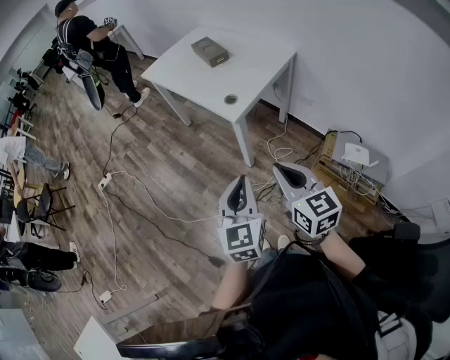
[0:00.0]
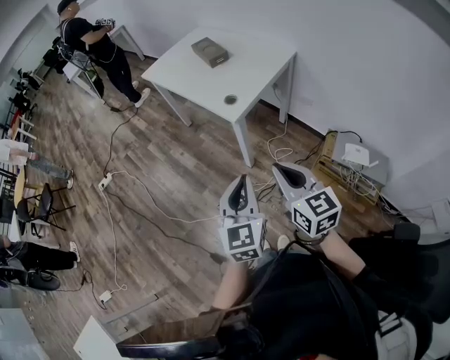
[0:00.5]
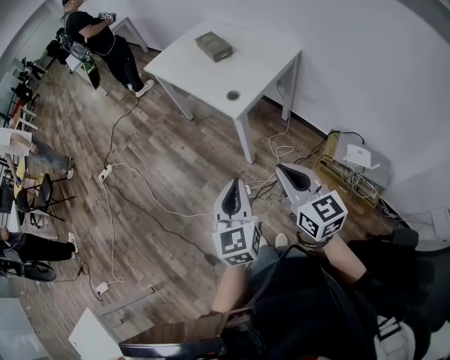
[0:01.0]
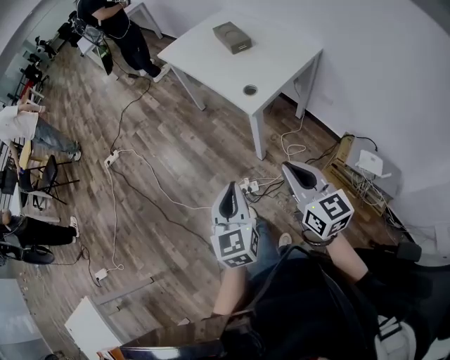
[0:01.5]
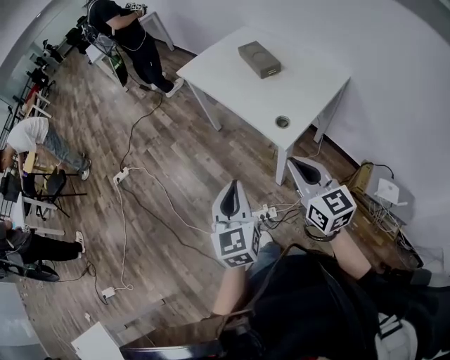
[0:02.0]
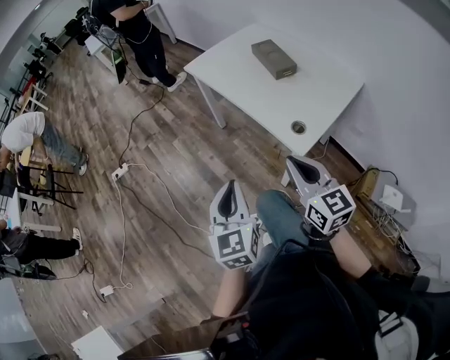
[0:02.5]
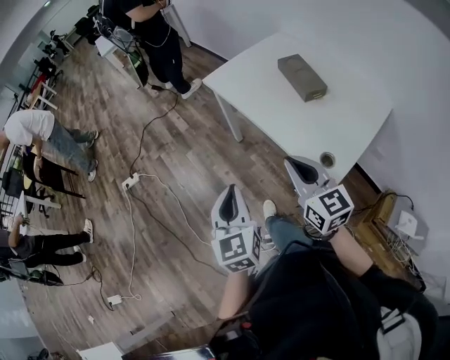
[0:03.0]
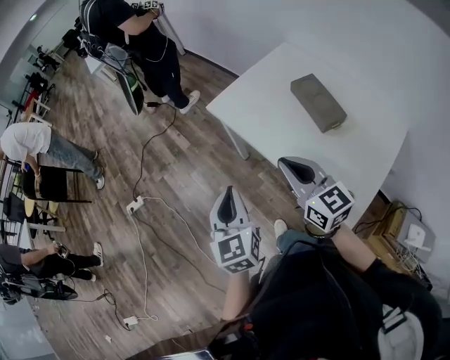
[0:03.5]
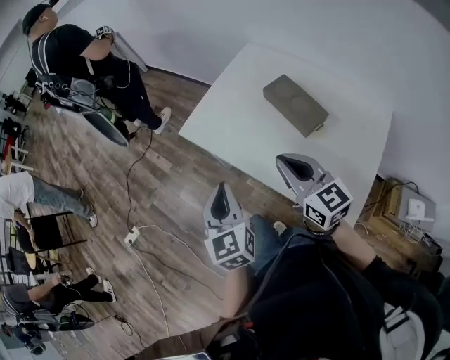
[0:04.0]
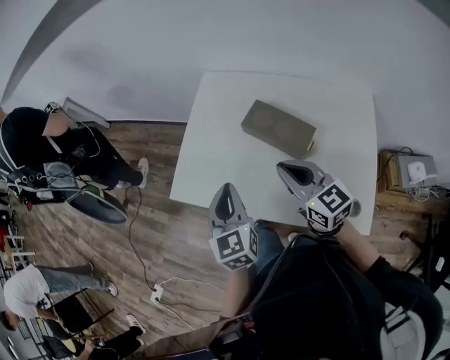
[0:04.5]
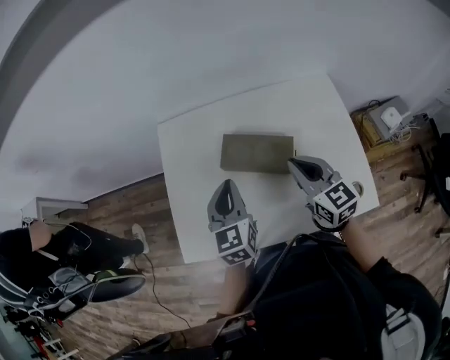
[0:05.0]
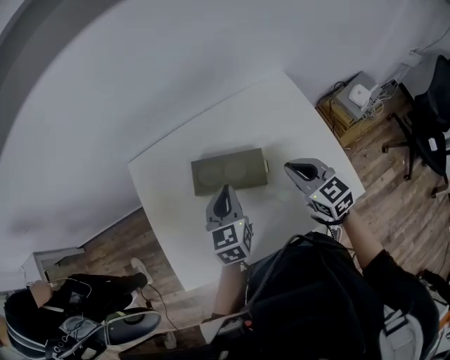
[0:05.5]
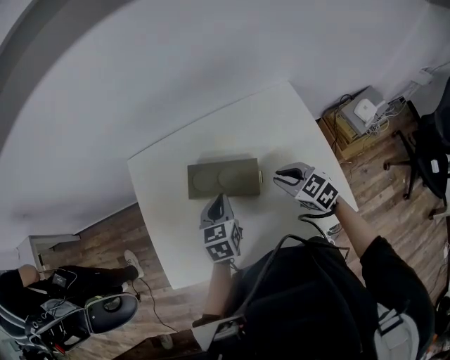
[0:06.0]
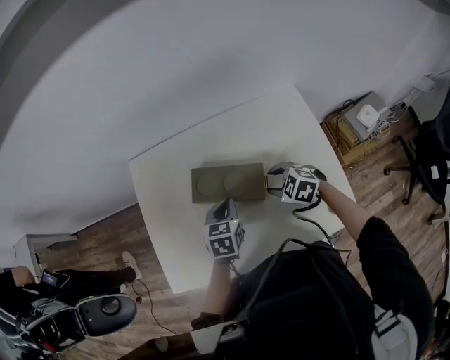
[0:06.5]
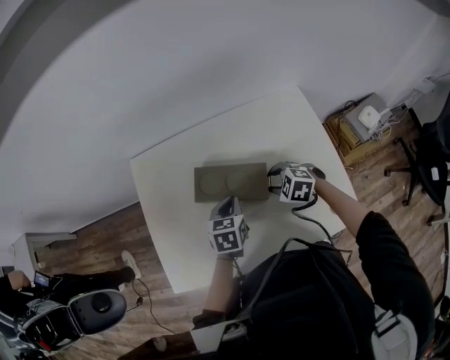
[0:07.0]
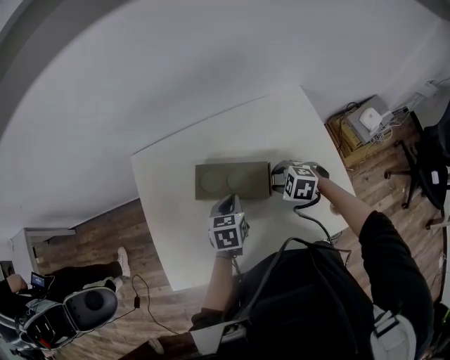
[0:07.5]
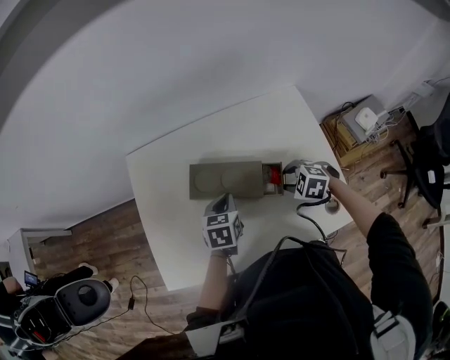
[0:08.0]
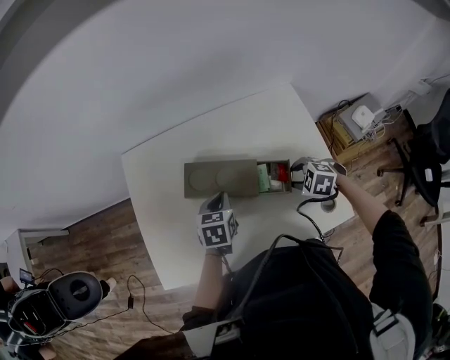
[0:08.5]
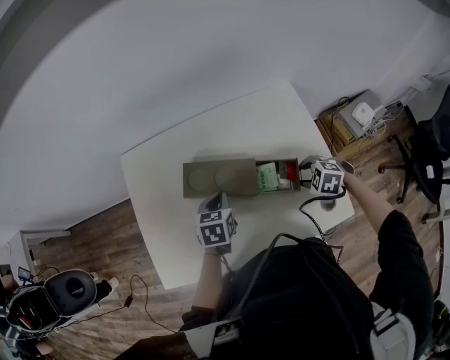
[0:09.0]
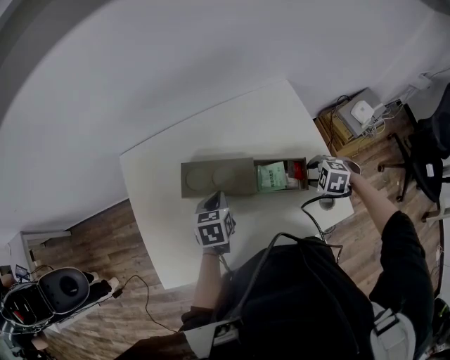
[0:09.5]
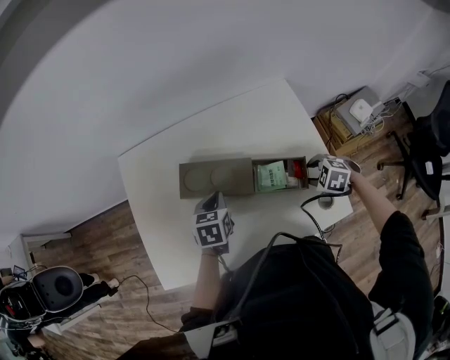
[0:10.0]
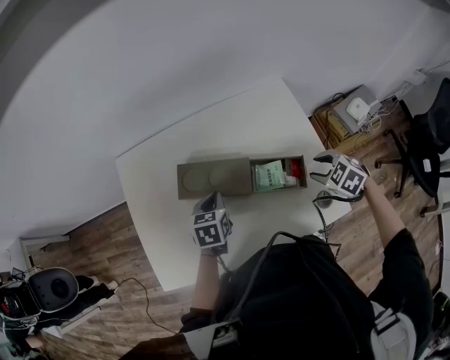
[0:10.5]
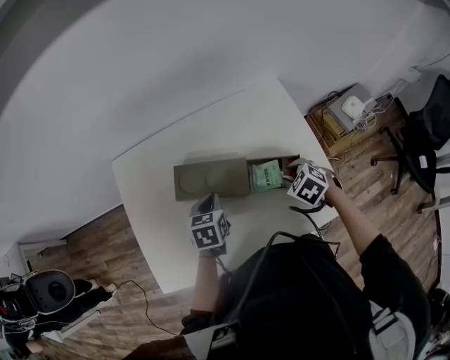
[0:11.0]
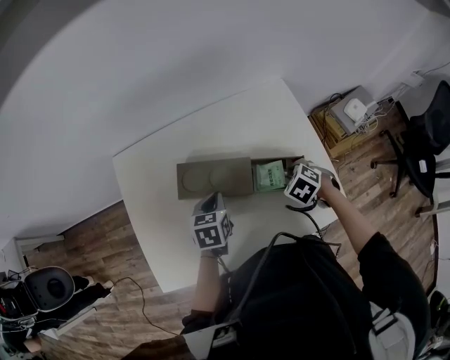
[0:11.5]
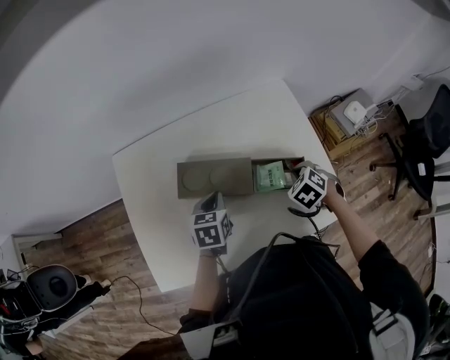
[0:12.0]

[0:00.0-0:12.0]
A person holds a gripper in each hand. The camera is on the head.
0:00.0 to 0:02.0: The right gripper is displaced forward by roughly 20 cm. The left gripper shifts about 25 cm forward and to the left.
0:02.0 to 0:04.0: The pair of grippers is taken forward, some 50 cm.
0:04.0 to 0:06.0: The left gripper changes place by roughly 40 cm, and changes its angle by approximately 70 degrees. The right gripper moves some 30 cm, and tips its fingers downward by about 30 degrees.
0:06.0 to 0:08.0: Both grippers travel together downward, approximately 5 cm. The right gripper turns by approximately 40 degrees, and opens up.
0:08.0 to 0:10.0: The right gripper ends up about 10 cm from where it was.
0:10.0 to 0:12.0: The right gripper changes place by about 5 cm, swivels roughly 30 degrees, and closes.

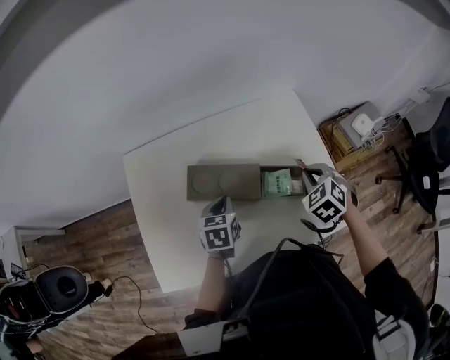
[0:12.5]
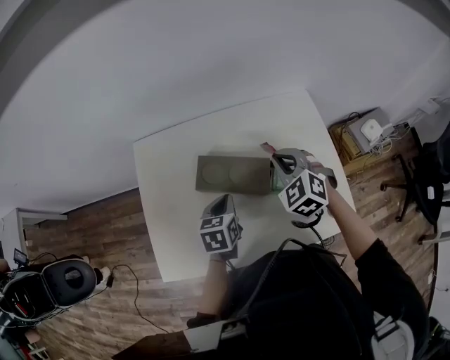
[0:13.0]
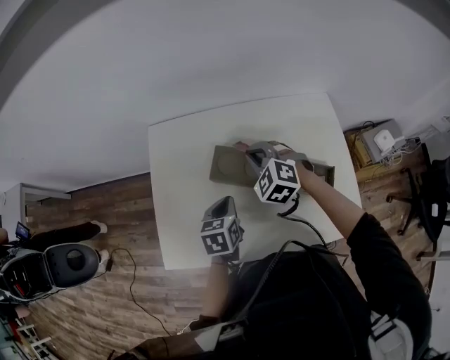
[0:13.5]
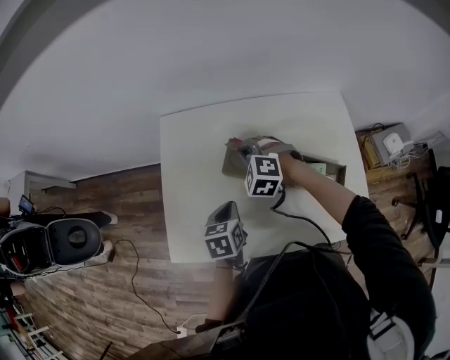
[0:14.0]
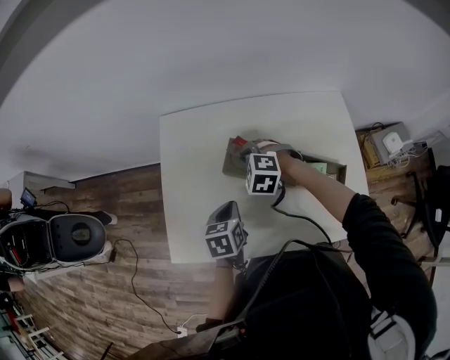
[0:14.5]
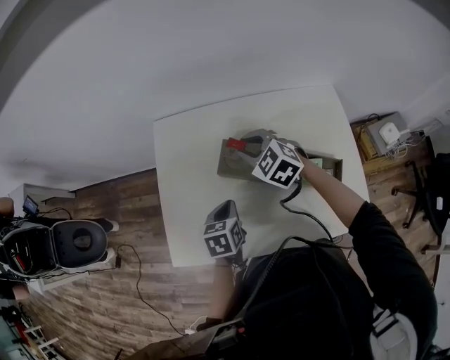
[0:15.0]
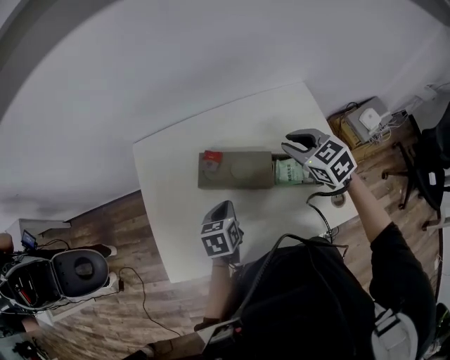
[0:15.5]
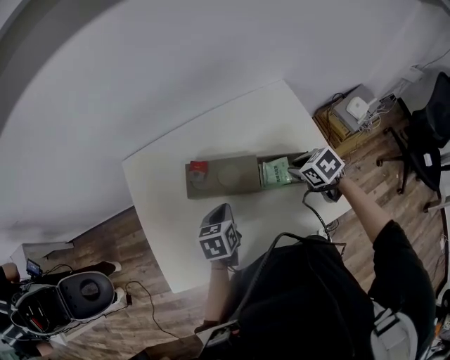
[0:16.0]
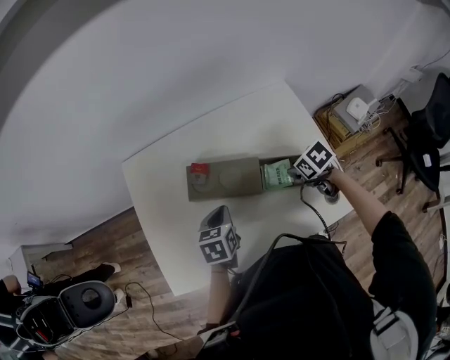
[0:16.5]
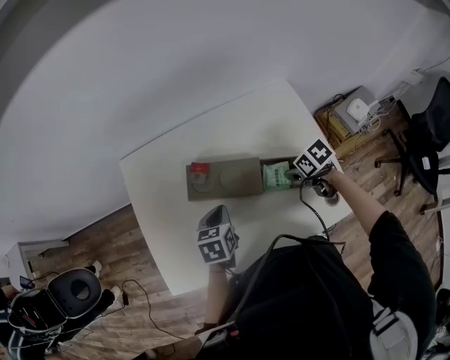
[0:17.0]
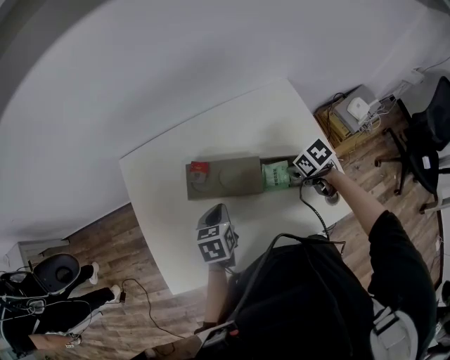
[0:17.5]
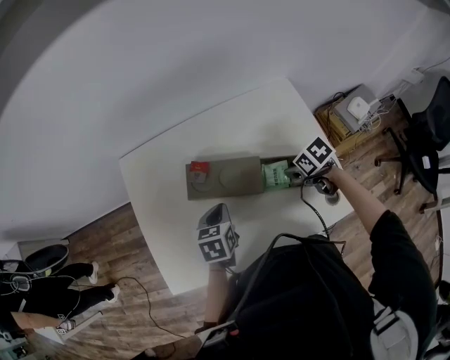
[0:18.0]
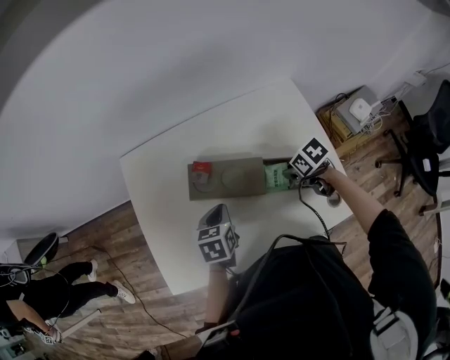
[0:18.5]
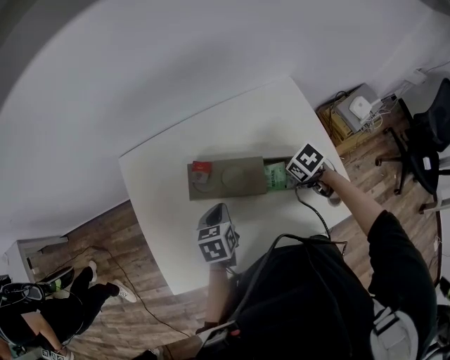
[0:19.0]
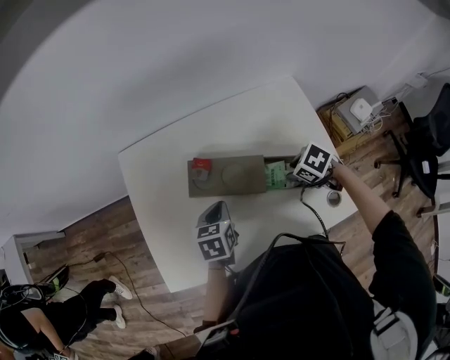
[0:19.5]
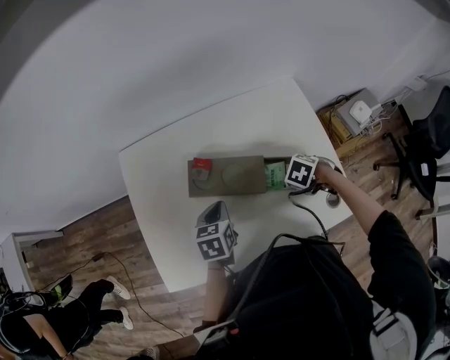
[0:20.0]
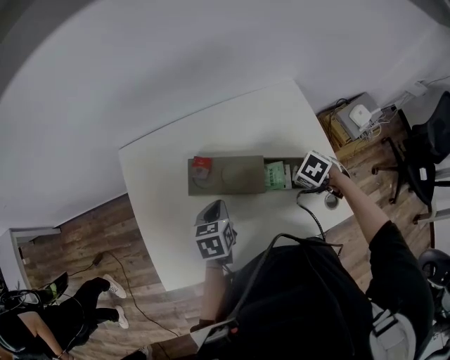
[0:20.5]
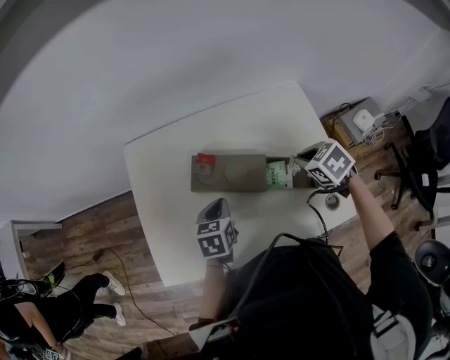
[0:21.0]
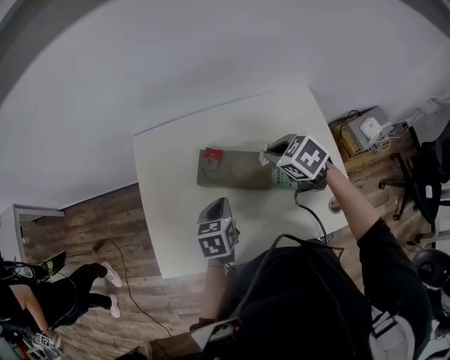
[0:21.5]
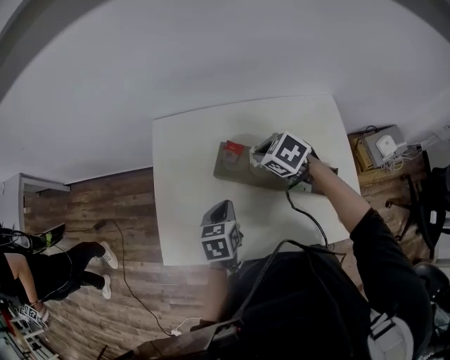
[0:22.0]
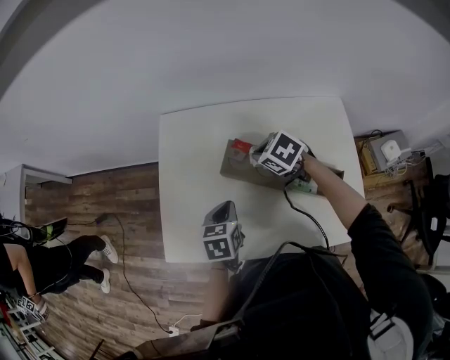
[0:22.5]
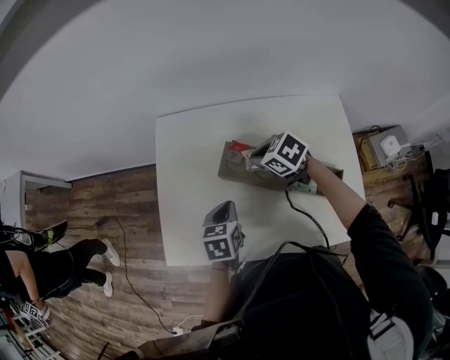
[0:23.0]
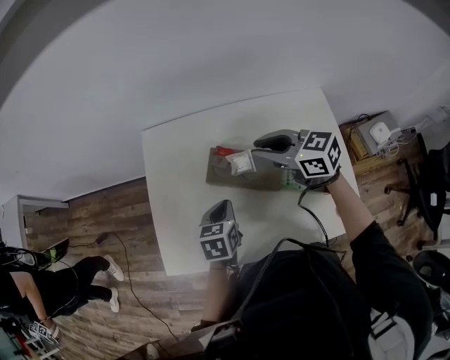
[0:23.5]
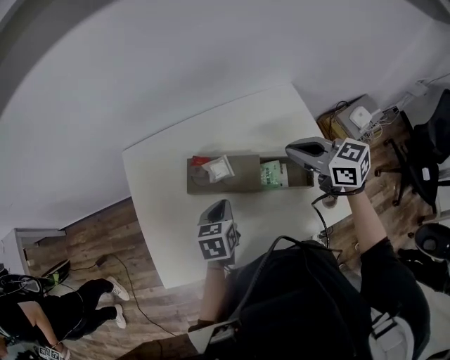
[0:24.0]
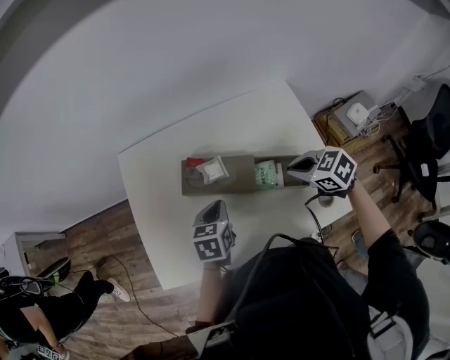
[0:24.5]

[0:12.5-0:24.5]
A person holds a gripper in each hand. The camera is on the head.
0:12.5 to 0:14.5: The left gripper changes place by about 15 cm. The right gripper ends up about 35 cm from where it was, and swivels approximately 50 degrees.
0:14.5 to 0:16.5: The right gripper shifts about 25 cm to the right, and twists about 70 degrees clockwise, seen from behind. The left gripper is displaced to the right by some 10 cm.
0:16.5 to 0:18.5: The grippers move only a little.
0:18.5 to 0:20.5: The right gripper turns by roughly 30 degrees, and closes.
0:20.5 to 0:22.5: The left gripper shifts by some 10 cm, while the right gripper ends up some 25 cm from where it was, and changes its angle by roughly 30 degrees.
0:22.5 to 0:24.5: The right gripper travels to the right and backward by roughly 25 cm, while the left gripper heads to the right, covering some 10 cm.

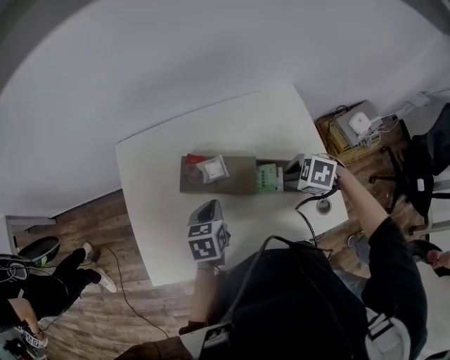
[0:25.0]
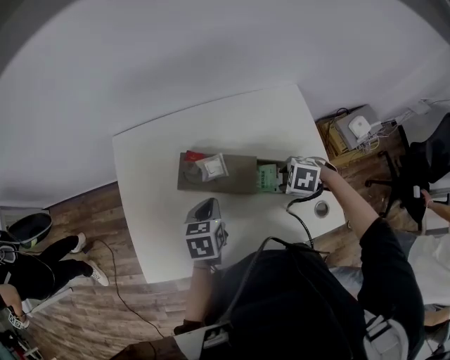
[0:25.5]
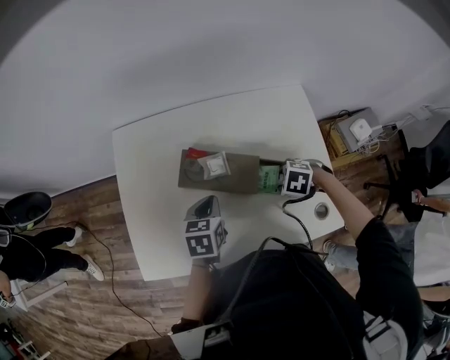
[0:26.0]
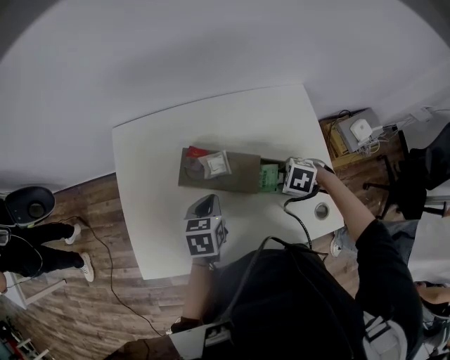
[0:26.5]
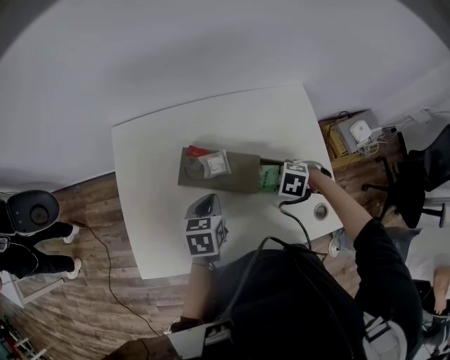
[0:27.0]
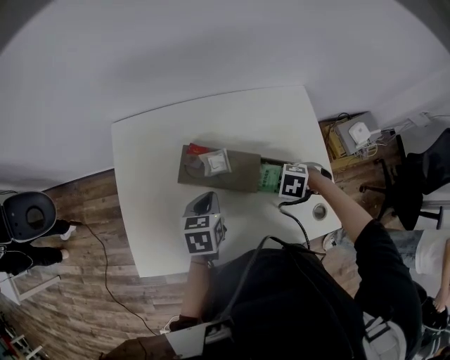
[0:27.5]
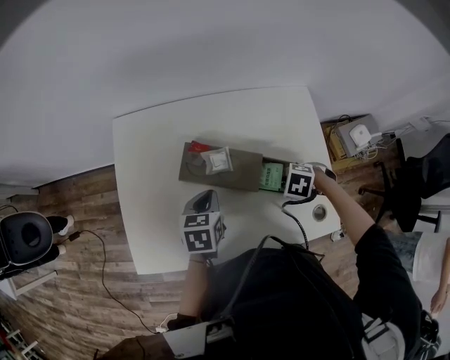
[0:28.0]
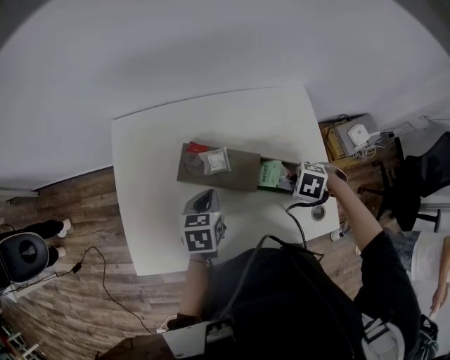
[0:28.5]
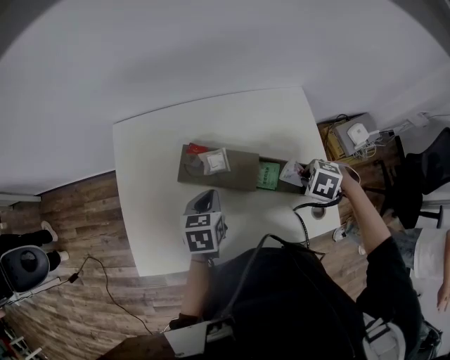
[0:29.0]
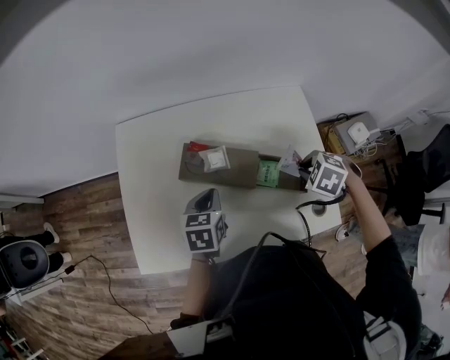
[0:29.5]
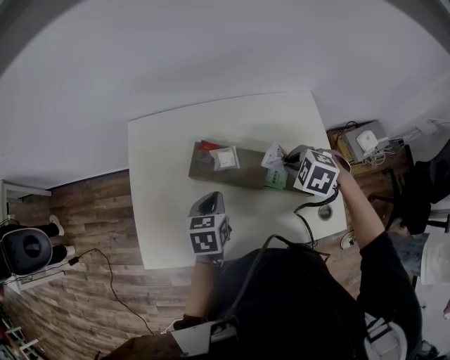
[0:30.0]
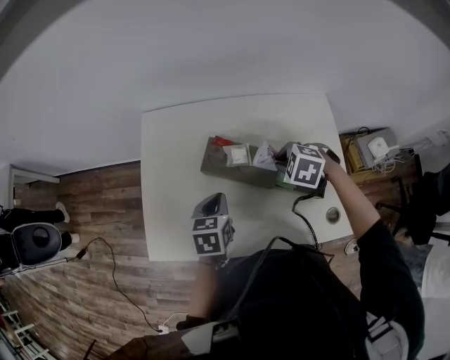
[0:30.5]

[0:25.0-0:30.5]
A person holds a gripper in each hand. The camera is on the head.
0:25.0 to 0:27.0: The right gripper shifts roughly 5 cm downward.
0:27.0 to 0:28.5: The right gripper closes up.
0:28.5 to 0:30.5: The right gripper ends up roughly 15 cm from where it was, and turns by about 20 degrees. The left gripper changes place by about 5 cm.
